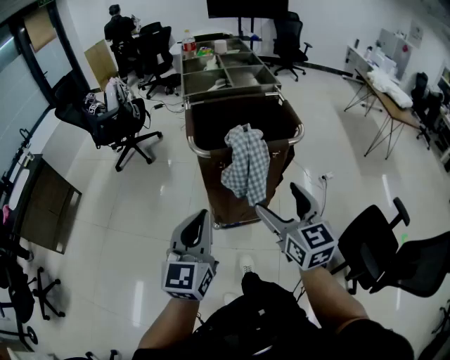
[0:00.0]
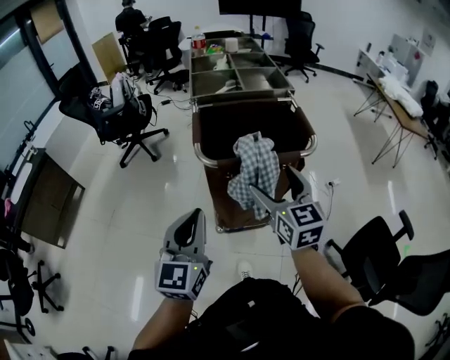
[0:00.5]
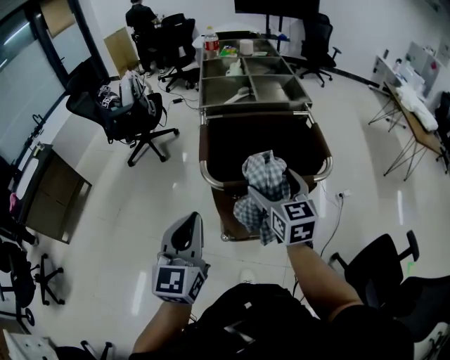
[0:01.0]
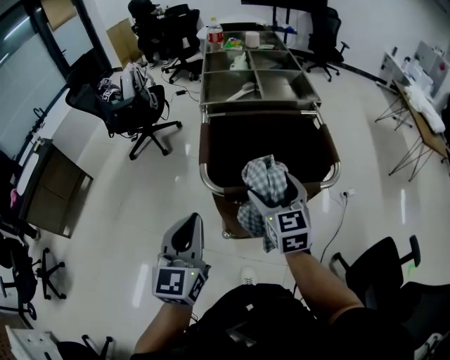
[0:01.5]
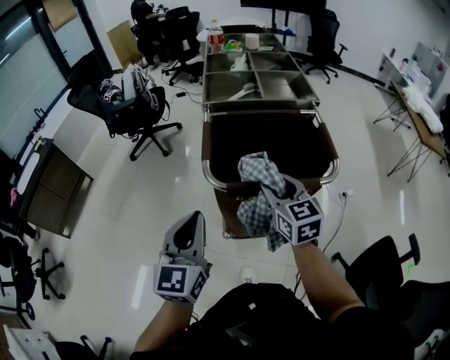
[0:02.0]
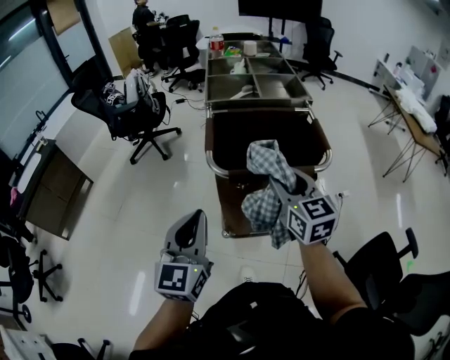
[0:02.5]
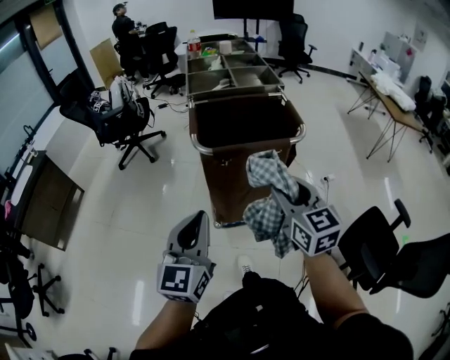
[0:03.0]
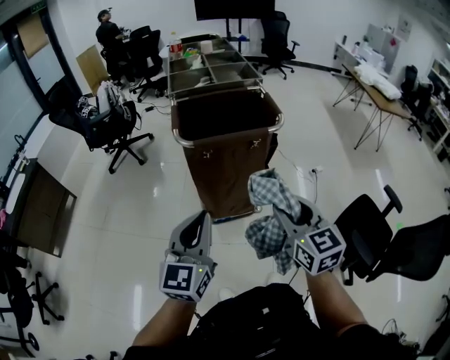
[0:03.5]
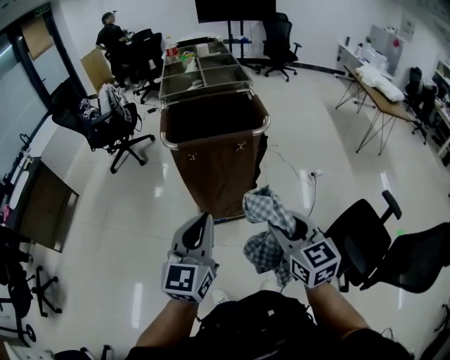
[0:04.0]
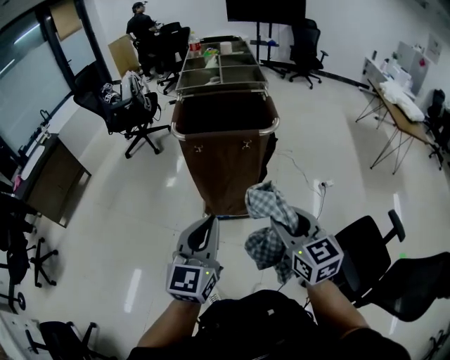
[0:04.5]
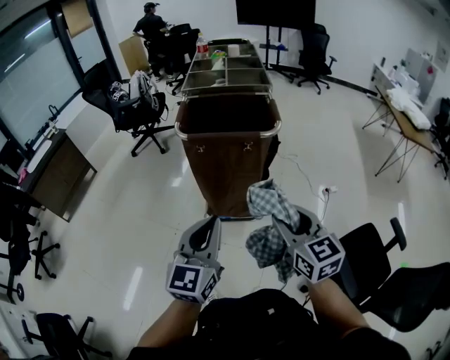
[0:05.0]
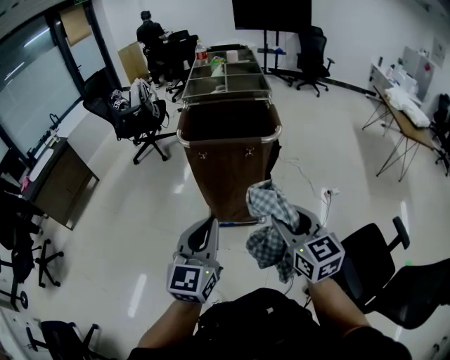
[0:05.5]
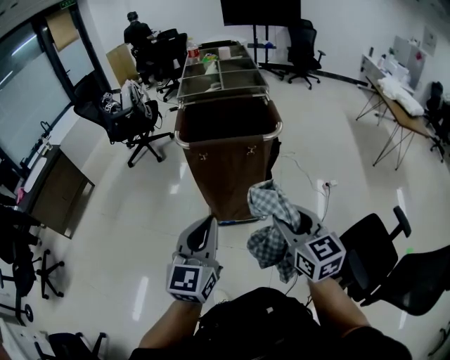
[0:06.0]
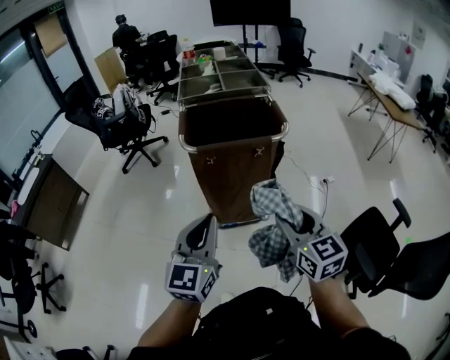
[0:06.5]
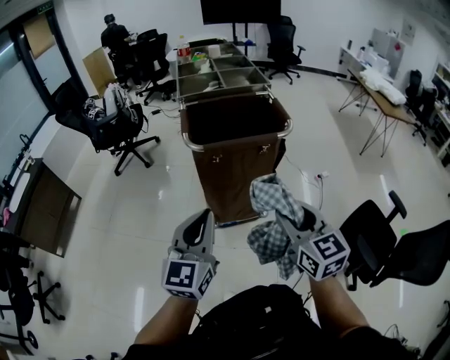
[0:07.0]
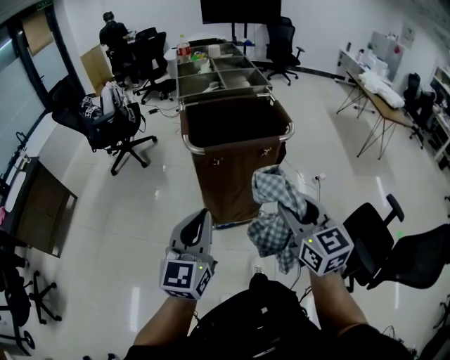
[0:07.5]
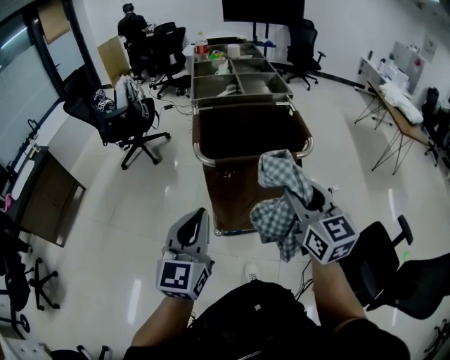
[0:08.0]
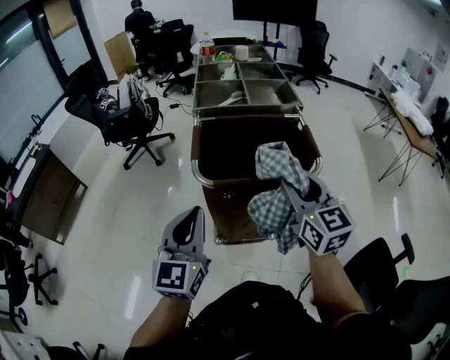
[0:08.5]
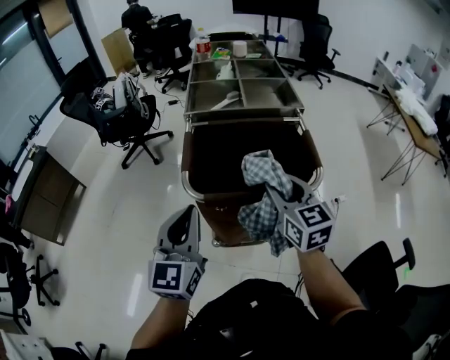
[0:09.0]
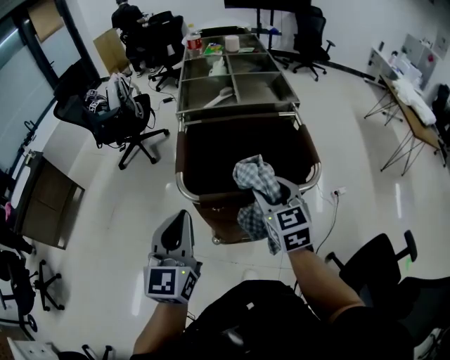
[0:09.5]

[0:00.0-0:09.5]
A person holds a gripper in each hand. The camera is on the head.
0:00.0 to 0:02.0: The right gripper travels forward by about 20 cm, and closes up. The left gripper heads forward, covering some 15 cm.
0:02.0 to 0:04.0: The grippers both shift backward and to the right by roughly 30 cm.
0:04.0 to 0:05.5: The left gripper moves about 5 cm.
0:05.5 to 0:07.5: The grippers both shift to the left and forward by some 15 cm.
0:07.5 to 0:09.5: Both grippers travel together forward, about 25 cm.

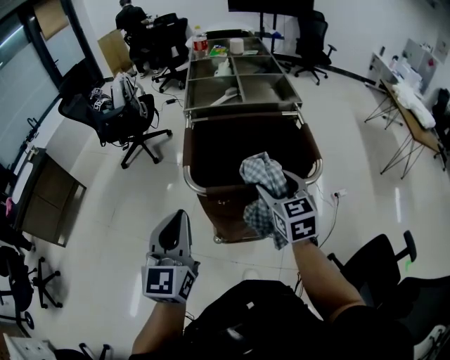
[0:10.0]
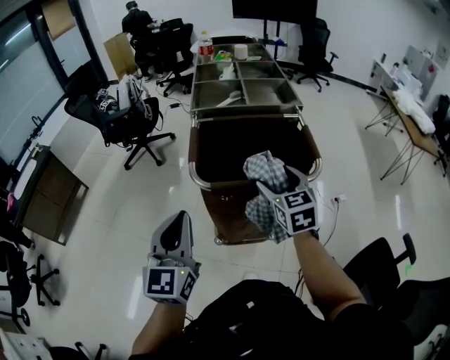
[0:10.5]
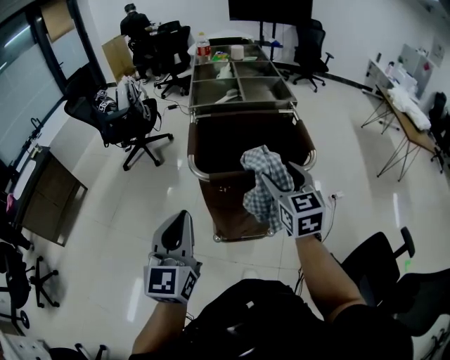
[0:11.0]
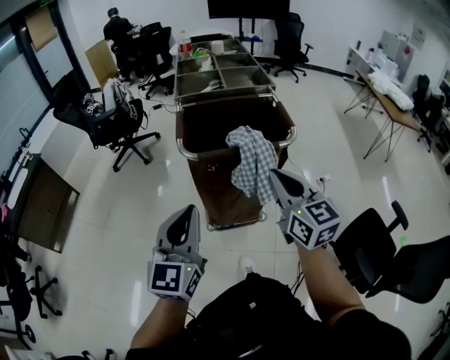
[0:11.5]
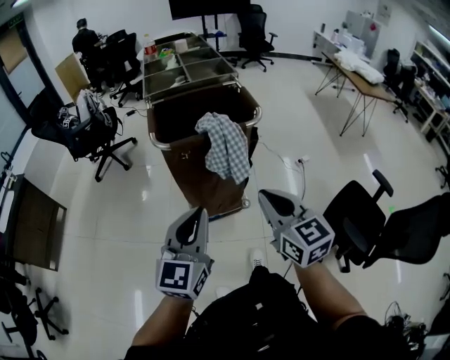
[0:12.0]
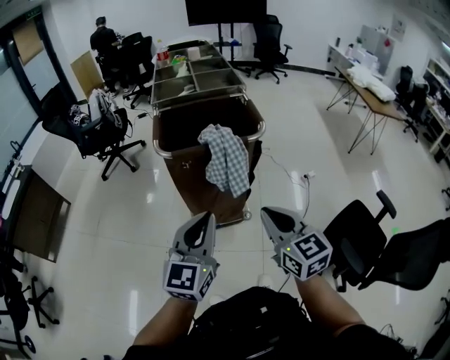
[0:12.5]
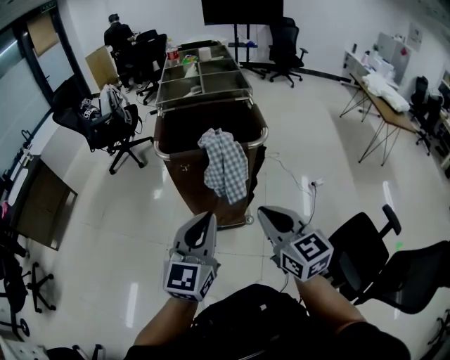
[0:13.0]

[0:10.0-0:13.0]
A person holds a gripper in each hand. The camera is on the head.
0:10.0 to 0:11.5: The left gripper is displaced backward by approximately 15 cm. Meanwhile the right gripper travels backward and upward by roughly 20 cm, and closes up.
0:11.5 to 0:13.0: The left gripper travels to the right by approximately 15 cm, while the right gripper goes roughly 10 cm backward and to the right.

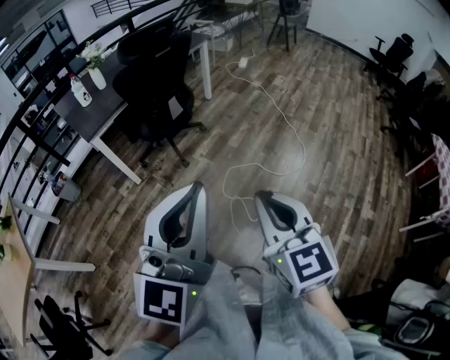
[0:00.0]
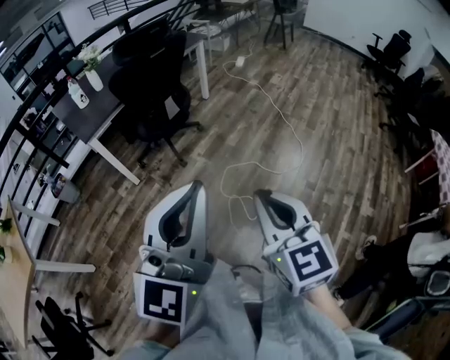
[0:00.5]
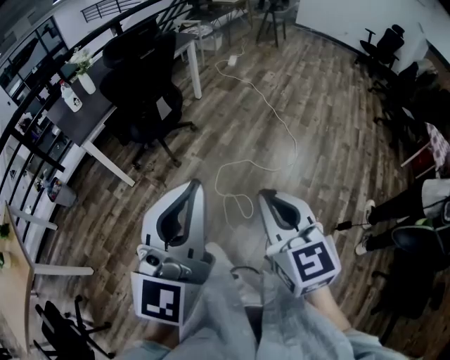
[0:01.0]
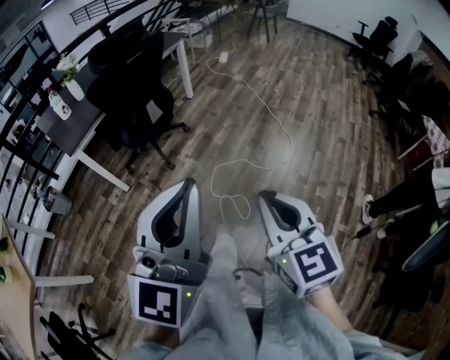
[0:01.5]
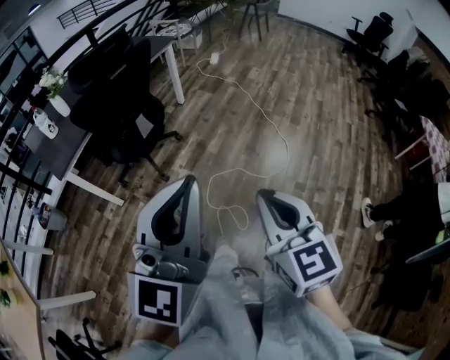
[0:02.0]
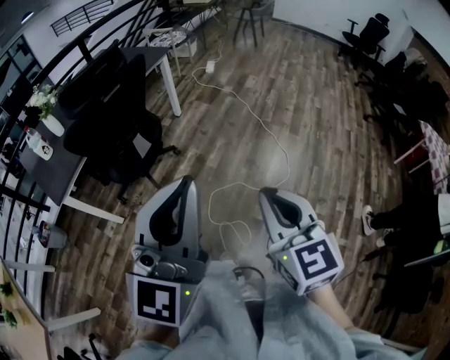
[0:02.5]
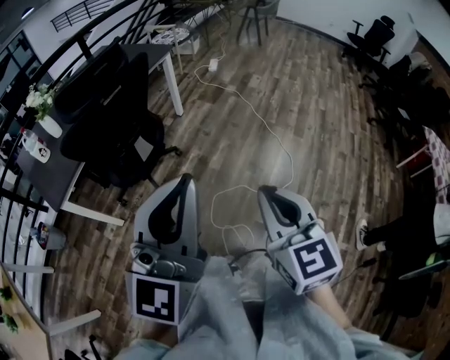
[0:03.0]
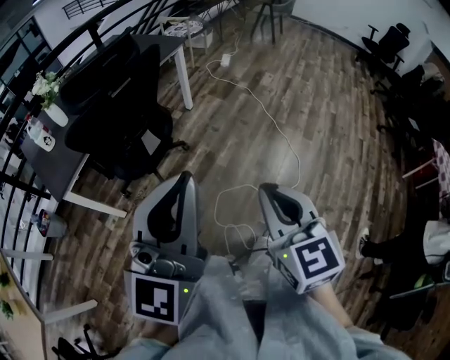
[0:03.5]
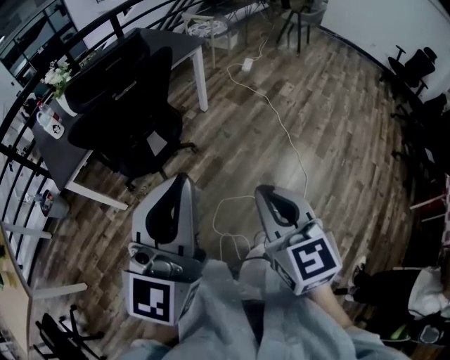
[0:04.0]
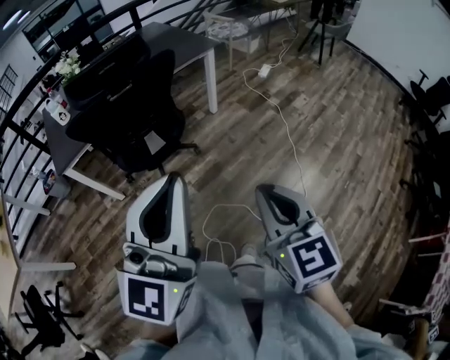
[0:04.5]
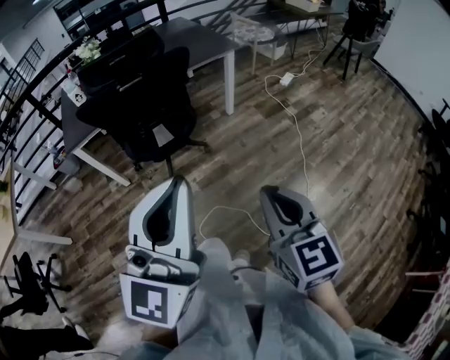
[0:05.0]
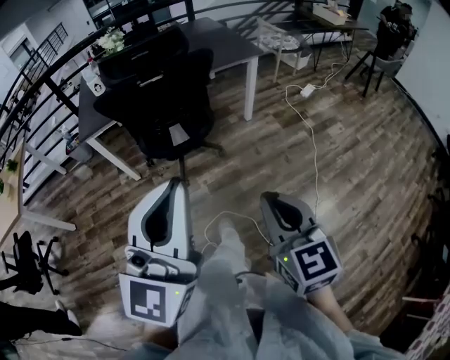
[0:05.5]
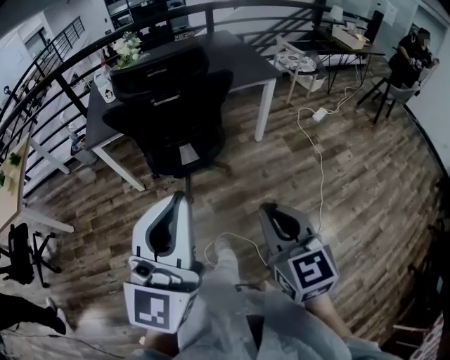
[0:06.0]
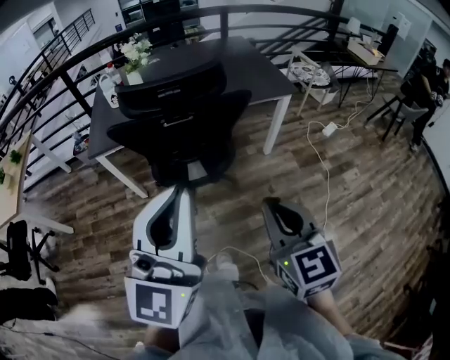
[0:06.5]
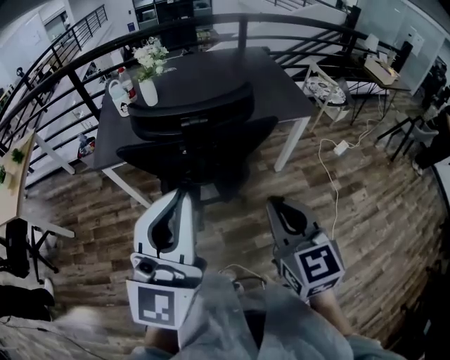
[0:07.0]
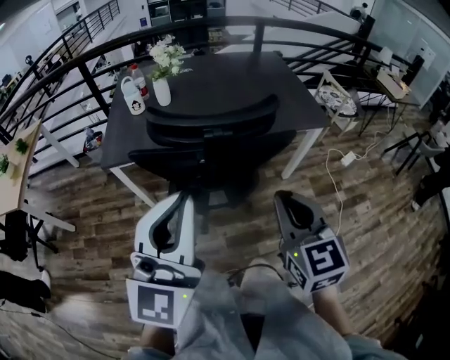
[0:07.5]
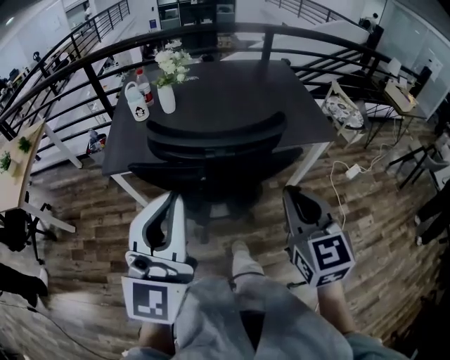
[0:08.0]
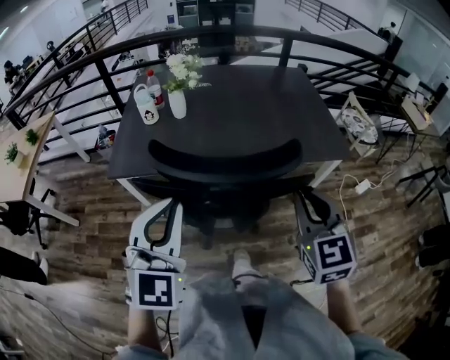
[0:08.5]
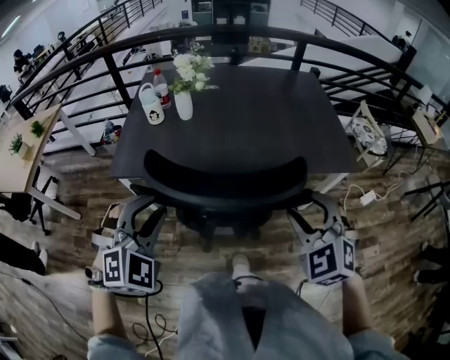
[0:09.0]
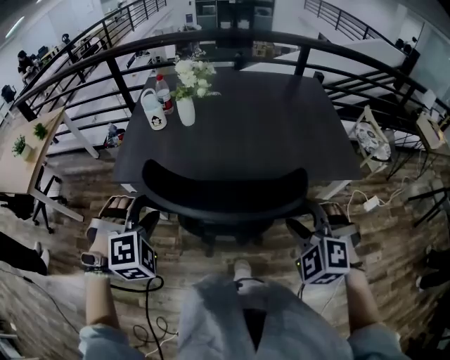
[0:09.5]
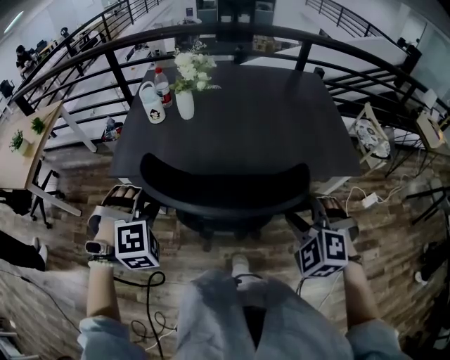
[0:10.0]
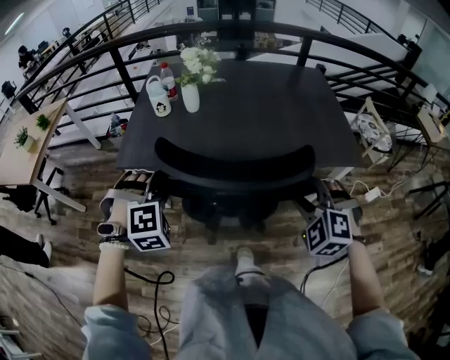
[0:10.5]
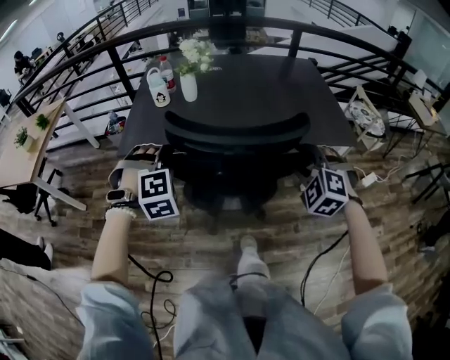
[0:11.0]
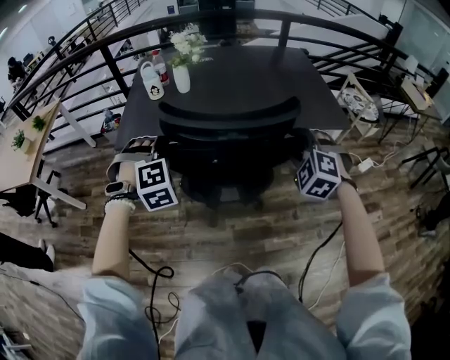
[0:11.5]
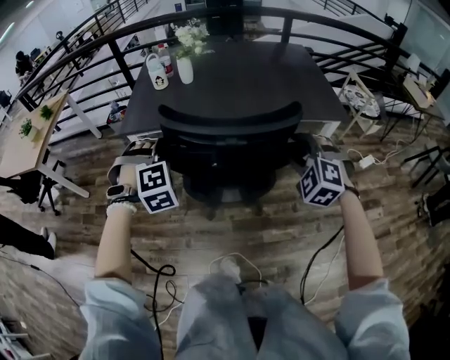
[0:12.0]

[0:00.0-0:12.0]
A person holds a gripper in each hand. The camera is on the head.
0:00.0 to 0:02.0: The right gripper is displaced forward and to the right by some 15 cm; the left gripper heads forward, covering approximately 15 cm.
0:02.0 to 0:04.0: Both grippers travel together forward, about 25 cm.
0:04.0 to 0:06.0: The left gripper changes place by roughly 10 cm, and swivels some 30 degrees. The right gripper moves approximately 15 cm, and swivels approximately 30 degrees.
0:06.0 to 0:08.0: The right gripper is displaced forward by some 35 cm. The left gripper goes approximately 30 cm forward and to the left.
0:08.0 to 0:10.0: The left gripper is displaced downward, forward and to the left by roughly 25 cm, tips its fingers downward by roughly 60 degrees, and opens up. Meanwhile the right gripper shifts about 15 cm forward and downward, rolls counterclockwise, seen from behind, by some 60 degrees, and opens up.
0:10.0 to 0:12.0: Both grippers move backward, roughly 10 cm.

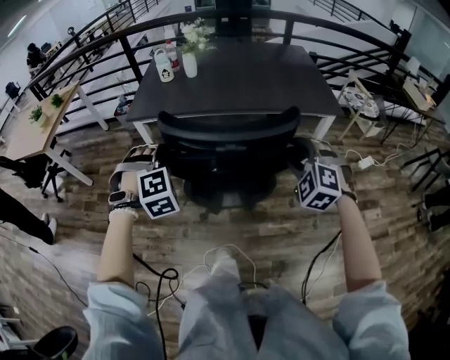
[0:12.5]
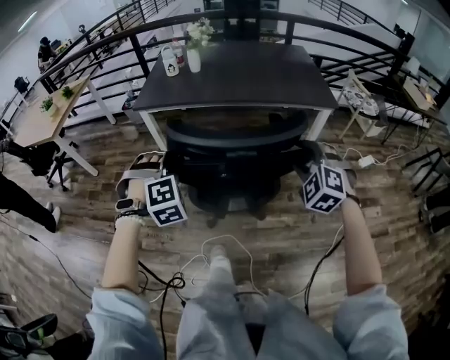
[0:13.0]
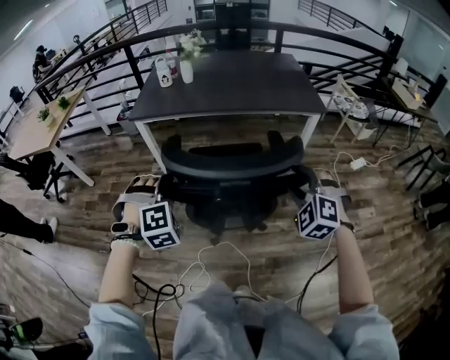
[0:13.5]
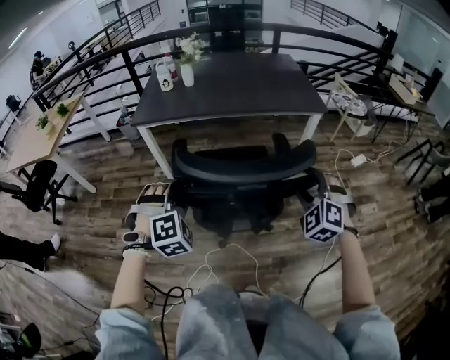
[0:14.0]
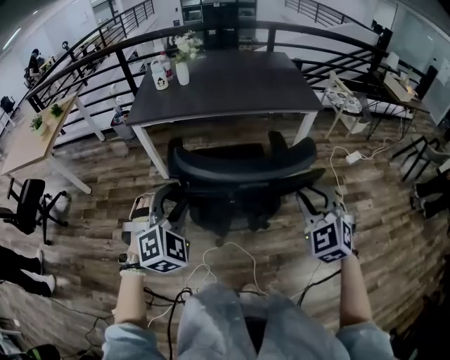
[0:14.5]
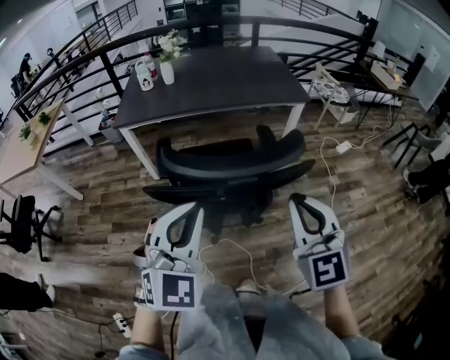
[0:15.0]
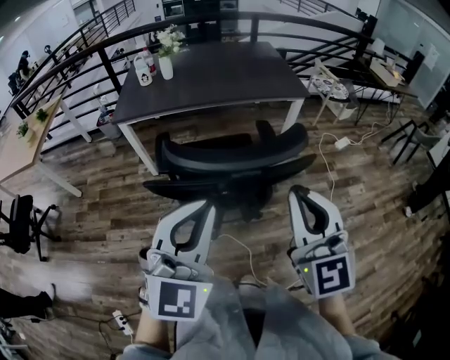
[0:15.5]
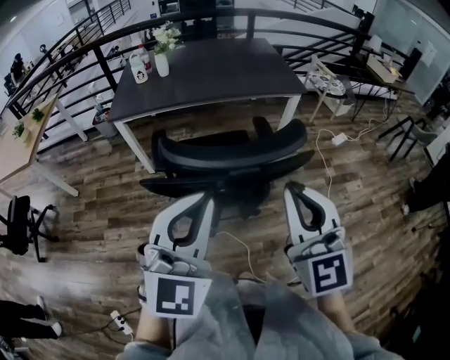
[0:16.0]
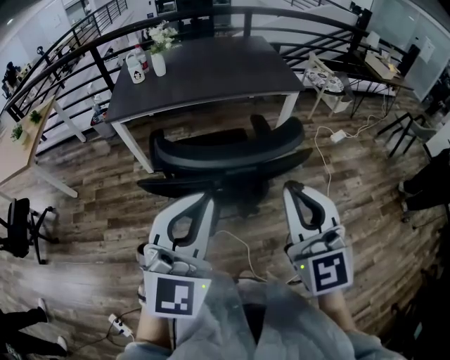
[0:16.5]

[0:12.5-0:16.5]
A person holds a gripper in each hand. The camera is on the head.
0:12.5 to 0:14.5: Both grippers travel together backward, roughly 20 cm. The right gripper changes its angle by some 30 degrees. Meanwhile the left gripper changes its angle by some 30 degrees.
0:14.5 to 0:16.5: The right gripper shifts about 15 cm upward, backward and to the left, rotates roughly 40 degrees, and closes. The left gripper goes about 20 cm upward, to the right and backward, tilts its fingers about 30 degrees upward, and closes its fingers.
